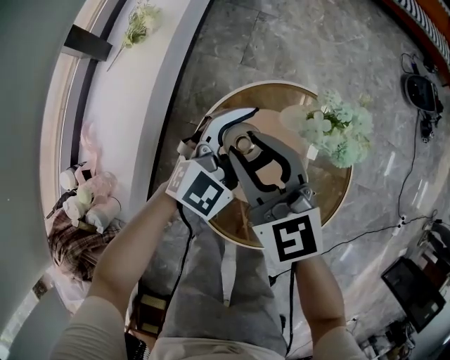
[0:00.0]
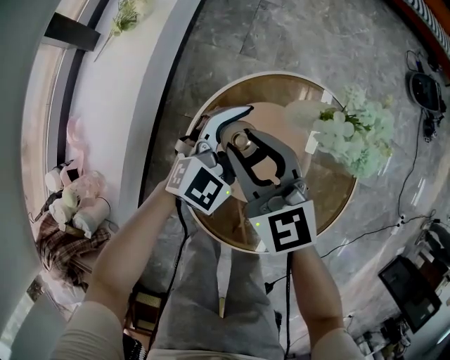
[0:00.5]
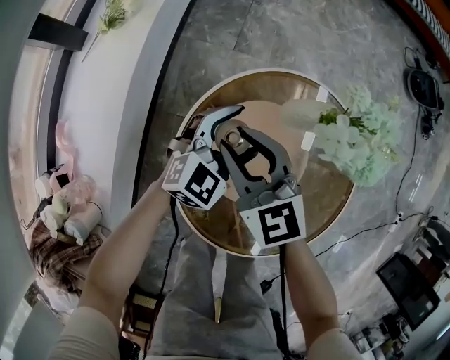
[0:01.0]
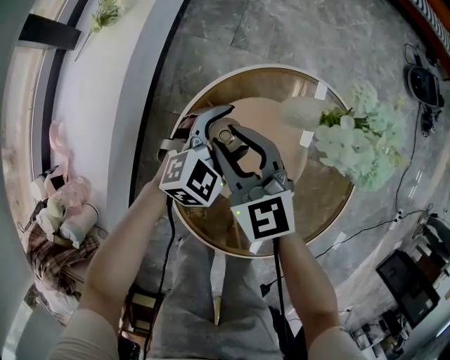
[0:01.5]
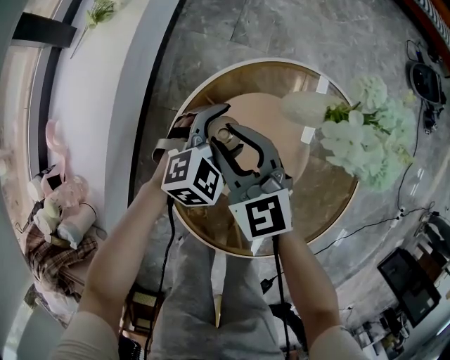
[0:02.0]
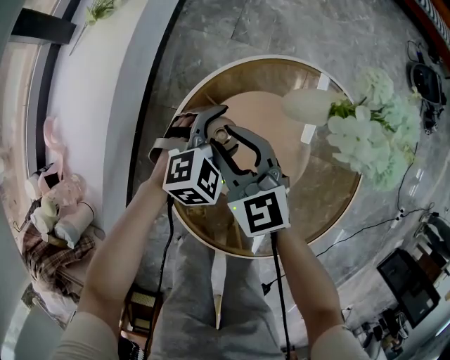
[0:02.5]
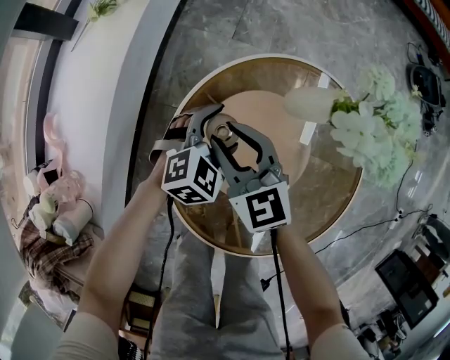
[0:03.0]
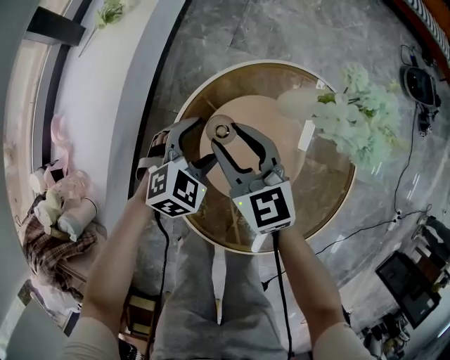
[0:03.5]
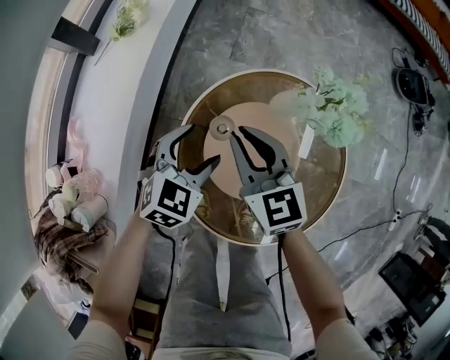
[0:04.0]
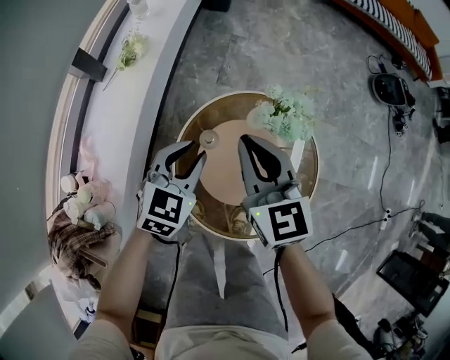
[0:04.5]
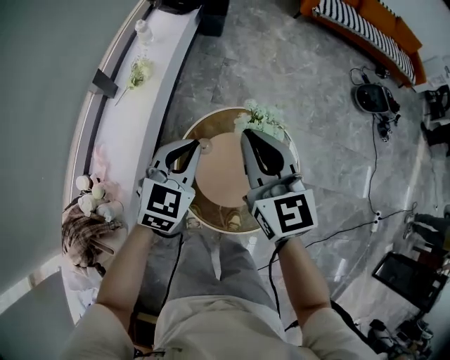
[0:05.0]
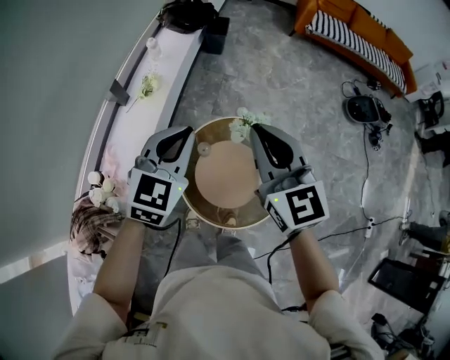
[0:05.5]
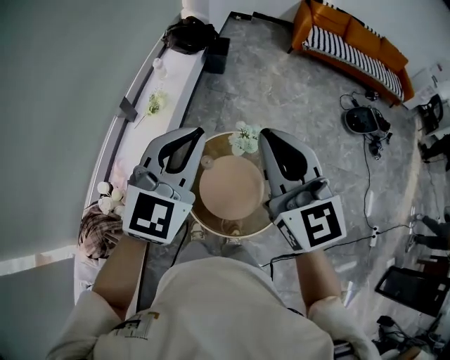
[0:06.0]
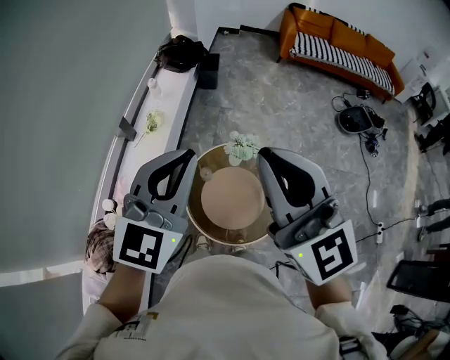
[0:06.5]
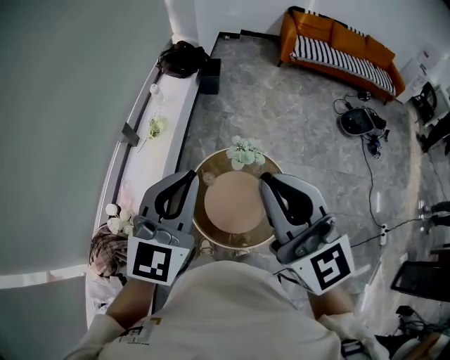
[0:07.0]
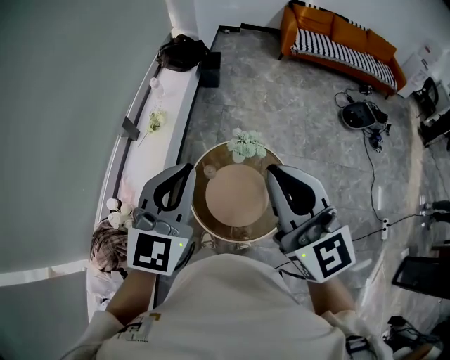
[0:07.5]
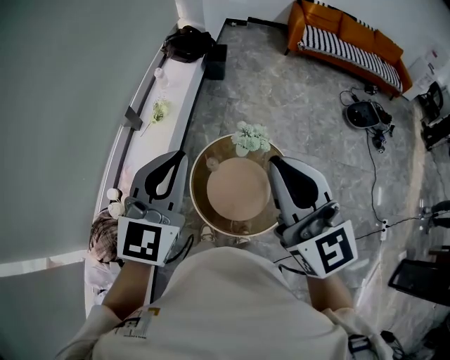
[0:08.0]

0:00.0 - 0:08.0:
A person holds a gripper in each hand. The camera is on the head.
0:00.0 - 0:02.0: Both grippers travel together downward, roughly 20 cm. The left gripper swivels some 30 degrees.
0:02.0 - 0:04.0: The right gripper goes approximately 10 cm upward. Meanwhile the left gripper travels upward, to the left and backward by roughly 15 cm.
0:04.0 - 0:06.0: The two grippers go some 60 cm upward. The right gripper changes its angle by roughly 30 degrees. The left gripper tips its fingers upward by about 30 degrees, and closes.
0:06.0 - 0:08.0: The two grippers go some 10 cm backward.

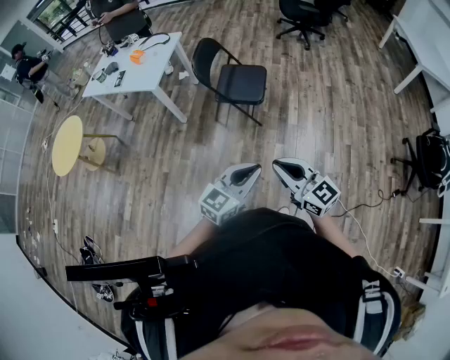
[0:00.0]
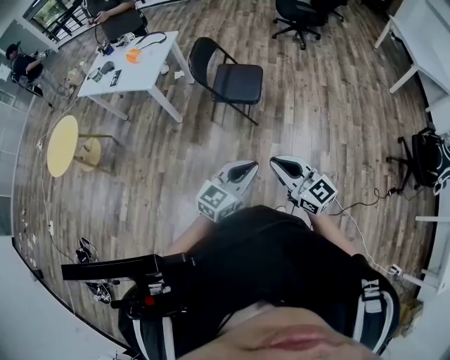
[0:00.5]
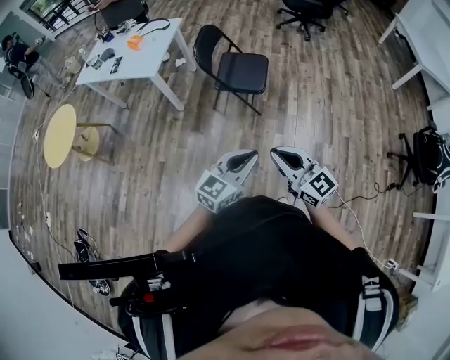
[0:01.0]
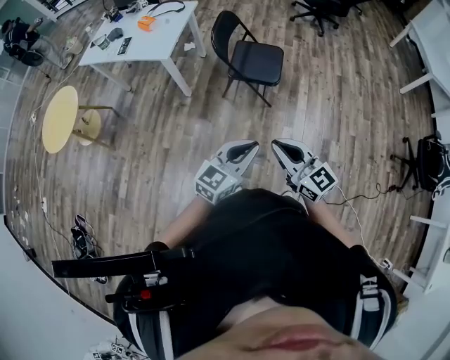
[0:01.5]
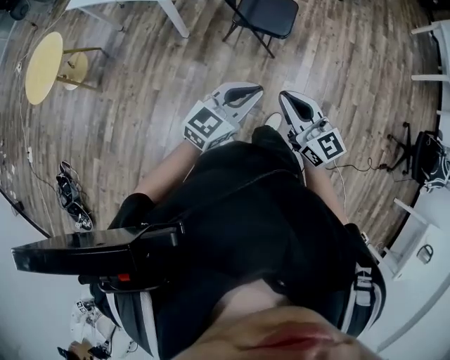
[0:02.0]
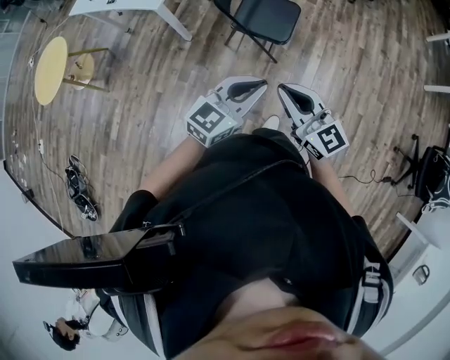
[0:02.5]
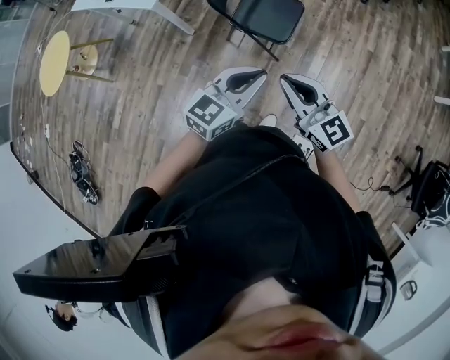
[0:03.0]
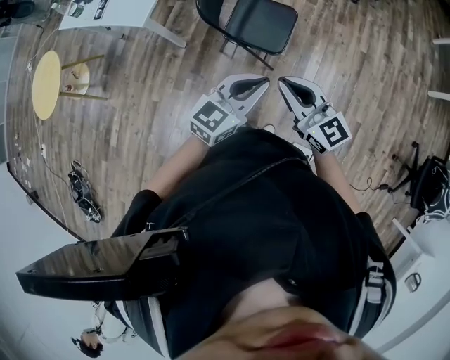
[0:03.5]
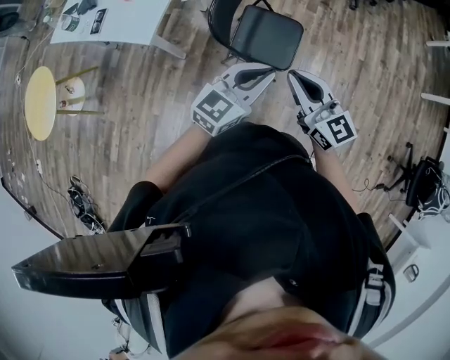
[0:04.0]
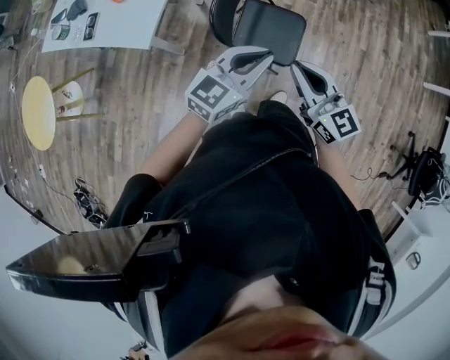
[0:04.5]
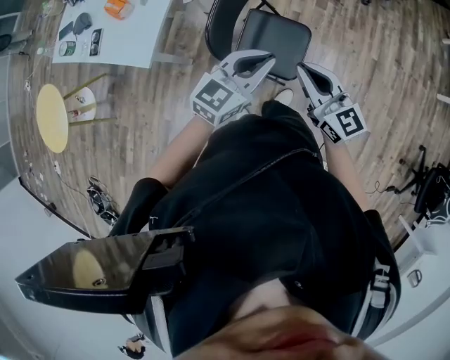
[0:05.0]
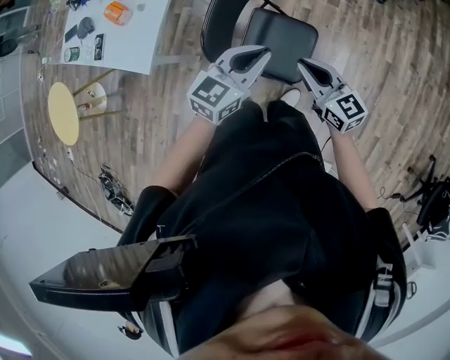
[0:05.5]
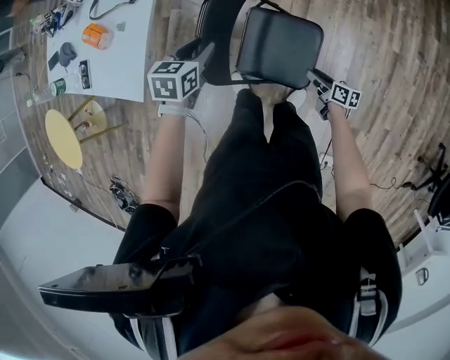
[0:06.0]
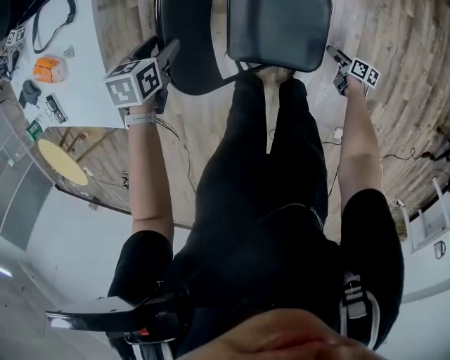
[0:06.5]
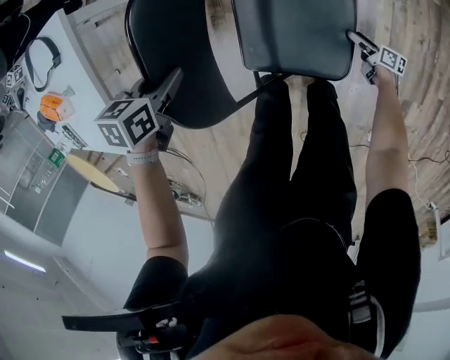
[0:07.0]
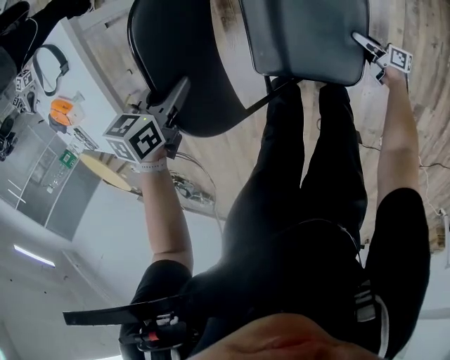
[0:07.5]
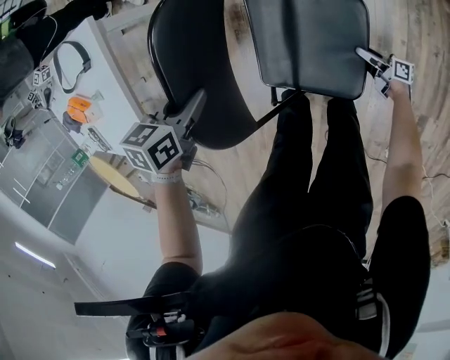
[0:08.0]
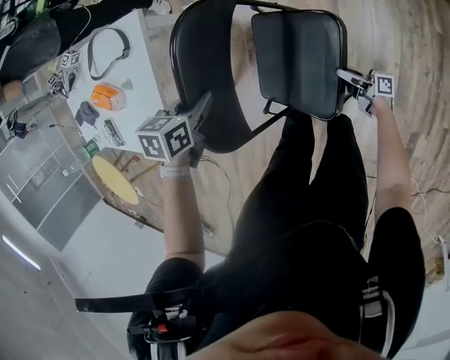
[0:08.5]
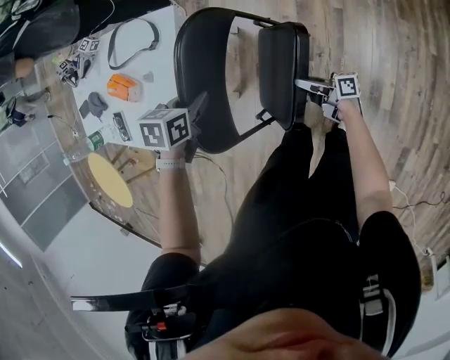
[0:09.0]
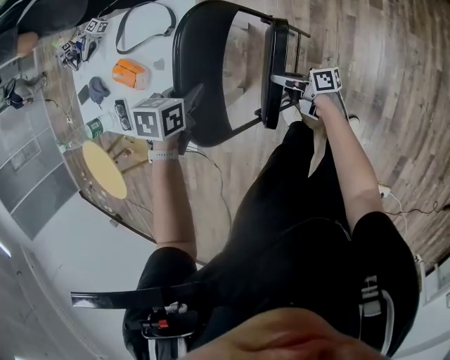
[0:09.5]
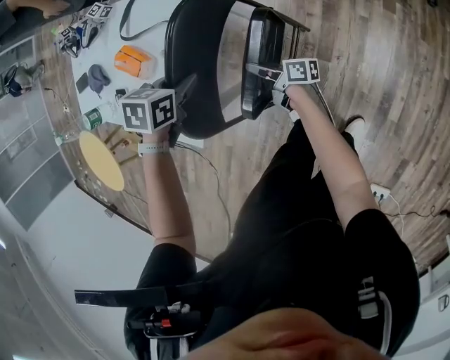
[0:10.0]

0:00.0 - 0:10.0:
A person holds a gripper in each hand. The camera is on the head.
0:00.0 - 0:02.0: Both grippers move to the left and forward, about 20 cm.
0:02.0 - 0:04.0: The grippers both shift forward by roughly 35 cm.
0:04.0 - 0:06.0: The right gripper heads downward and forward, covering roughly 50 cm, rolls clockwise, seen from behind, by some 60 degrees, and opens. The left gripper shifts approximately 40 cm forward and downward, points its fingers approximately 40 degrees further downward, and opens up.
0:06.0 - 0:08.0: The left gripper is displaced downward by some 15 cm, swivels roughly 20 degrees, and opens, then closes once more. The right gripper heads downward, covering approximately 25 cm, and swivels approximately 30 degrees.
0:08.0 - 0:10.0: The left gripper shifts about 25 cm to the left and upward. The right gripper moves to the left and upward, roughly 60 cm, and closes its fingers.

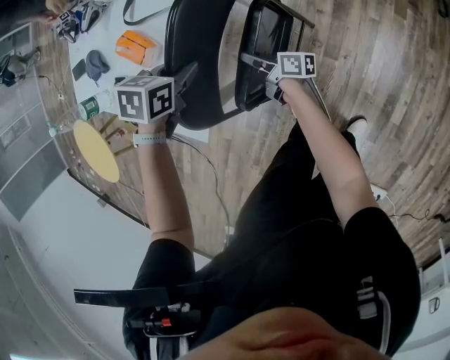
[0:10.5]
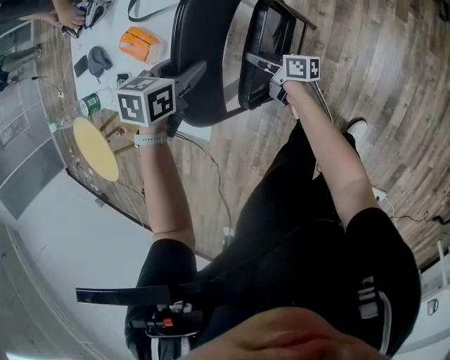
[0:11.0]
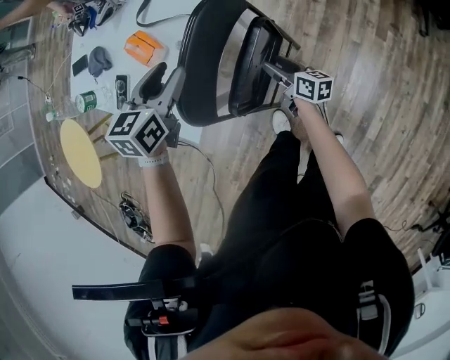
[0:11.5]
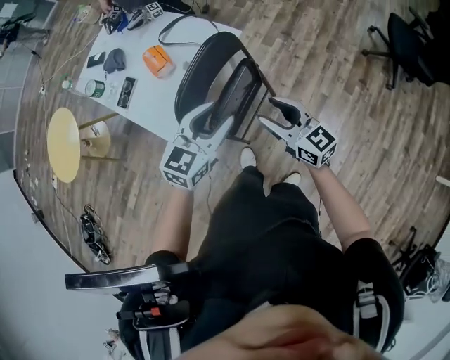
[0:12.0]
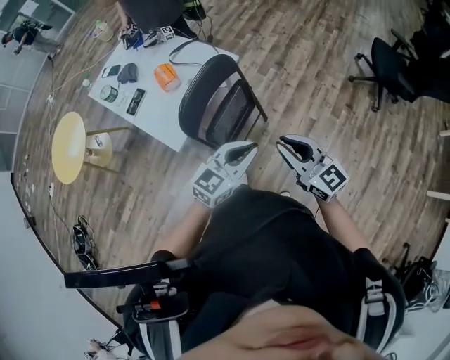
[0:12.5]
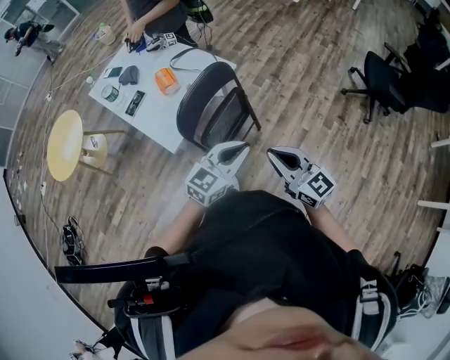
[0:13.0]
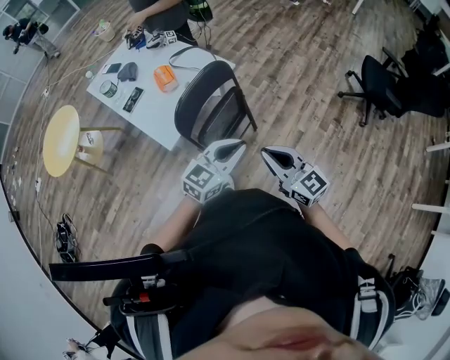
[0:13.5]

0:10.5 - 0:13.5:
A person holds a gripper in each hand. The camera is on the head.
0:10.5 - 0:12.0: The right gripper moves upward and to the right, approximately 35 cm, twists roughly 70 degrees counterclockwise, seen from behind, and opens up; the left gripper is displaced upward, backward and to the right by about 30 cm, points its fingers about 50 degrees further upward, and opens its fingers.
0:12.0 - 0:13.5: The left gripper heads backward and to the right, covering some 15 cm, and closes, while the right gripper travels backward and upward by about 20 cm, and closes its fingers.

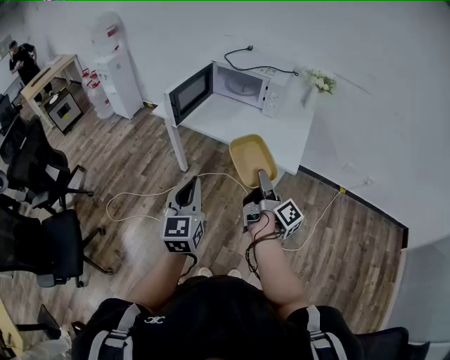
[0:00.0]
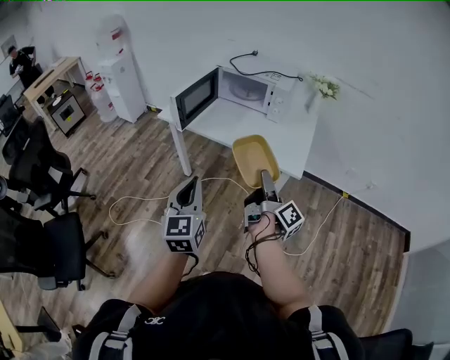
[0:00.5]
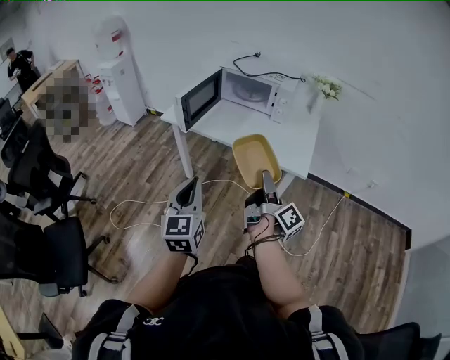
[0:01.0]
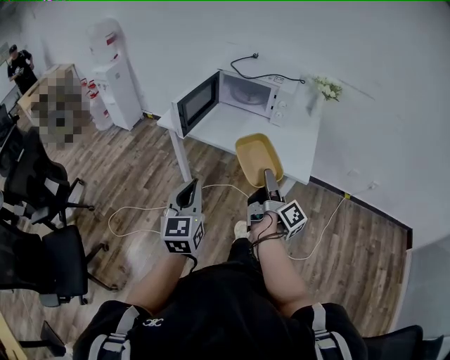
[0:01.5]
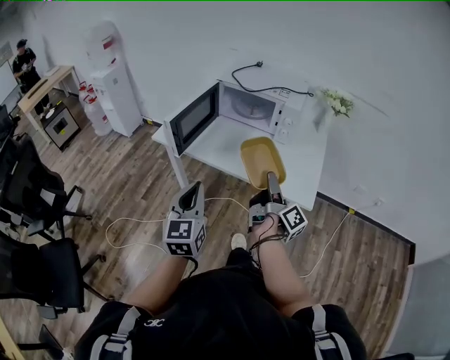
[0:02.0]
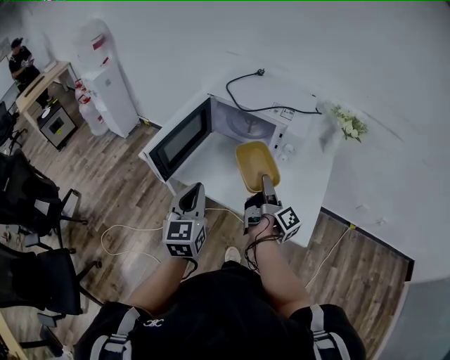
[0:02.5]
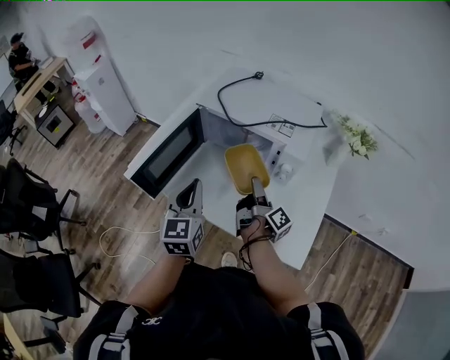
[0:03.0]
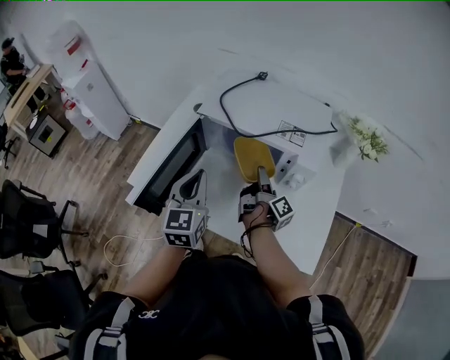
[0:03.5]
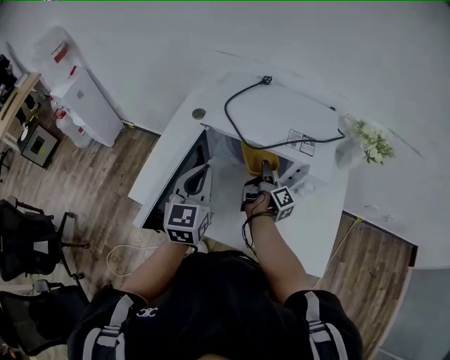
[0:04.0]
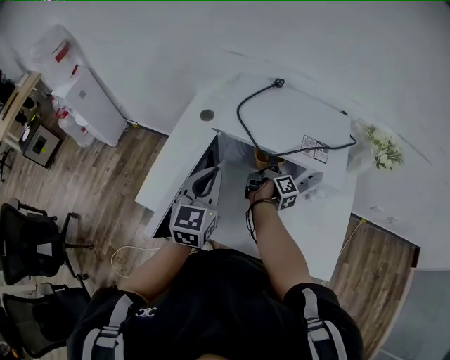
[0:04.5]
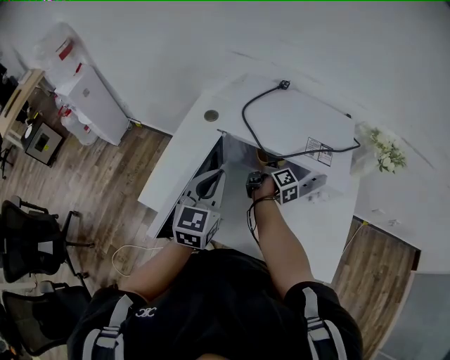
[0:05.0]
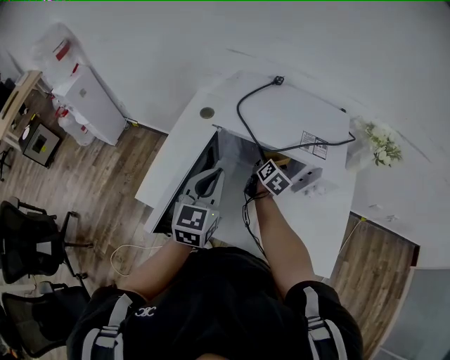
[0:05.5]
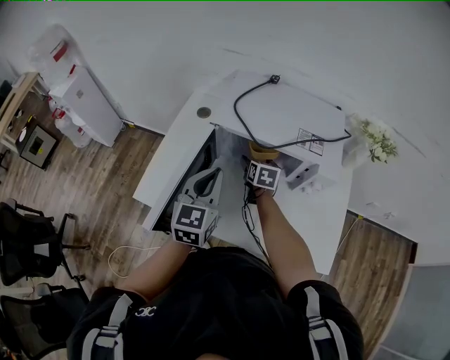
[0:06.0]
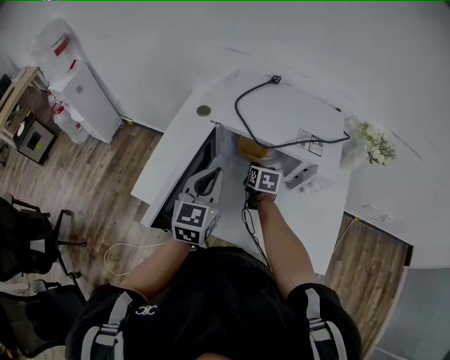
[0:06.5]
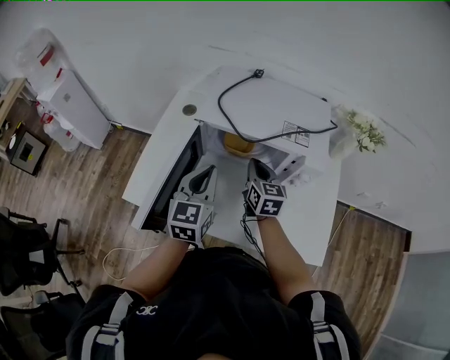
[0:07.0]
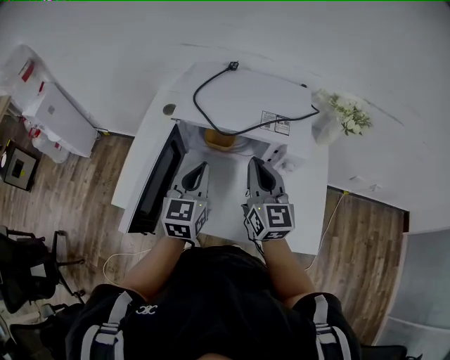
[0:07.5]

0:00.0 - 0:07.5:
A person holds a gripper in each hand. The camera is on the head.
0:00.0 - 0:02.0: The grippers both shift forward by about 20 cm.
0:02.0 - 0:04.0: Both grippers are carried forward, approximately 50 cm.
0:04.0 - 0:05.5: The right gripper travels forward by approximately 5 cm, rolls counterclockwise, seen from behind, by roughly 60 degrees, and opens.
0:05.5 - 0:07.5: The right gripper shifts some 25 cm upward and backward, swivels some 40 degrees, and closes, while the left gripper heads to the right, covering some 5 cm.
